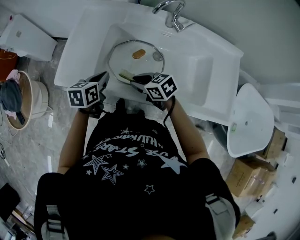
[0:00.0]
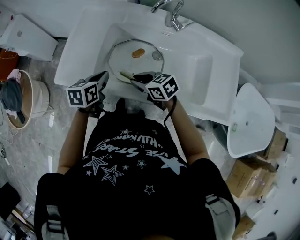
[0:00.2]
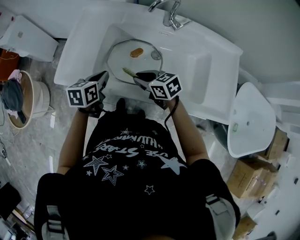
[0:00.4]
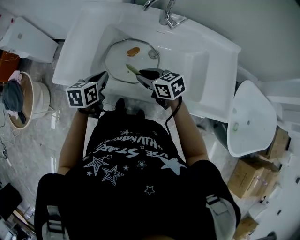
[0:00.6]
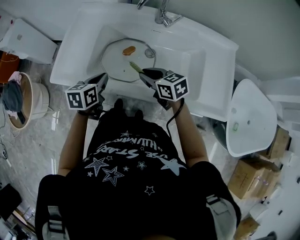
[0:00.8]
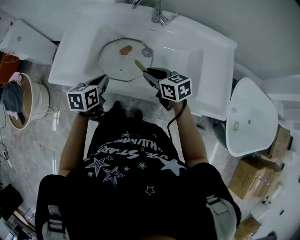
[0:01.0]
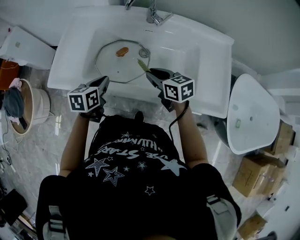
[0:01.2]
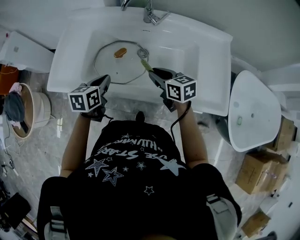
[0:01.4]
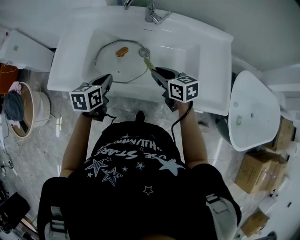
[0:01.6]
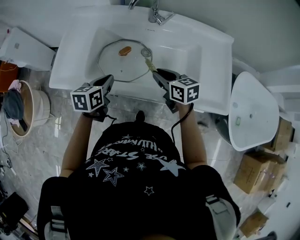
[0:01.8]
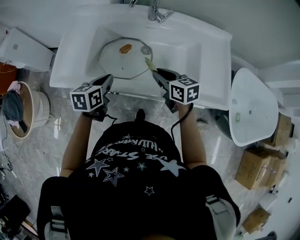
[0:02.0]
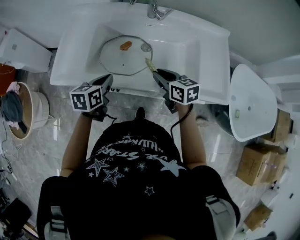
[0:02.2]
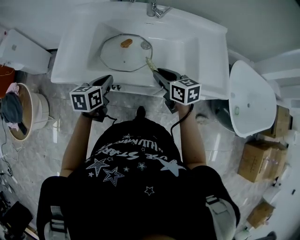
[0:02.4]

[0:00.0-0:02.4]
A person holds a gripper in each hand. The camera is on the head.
0.0 to 1.2 s: The right gripper goes approximately 15 cm to the right, and turns by approximately 20 degrees; the left gripper travels to the right and backward by approximately 10 cm.
1.2 to 2.4 s: Both grippers move backward, roughly 5 cm.

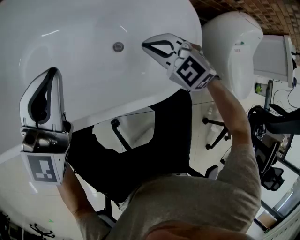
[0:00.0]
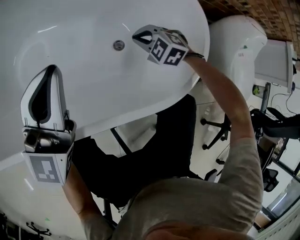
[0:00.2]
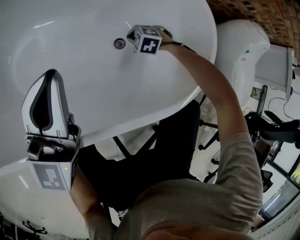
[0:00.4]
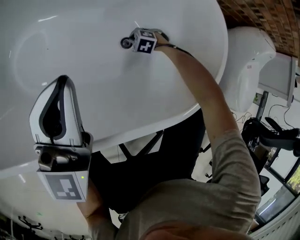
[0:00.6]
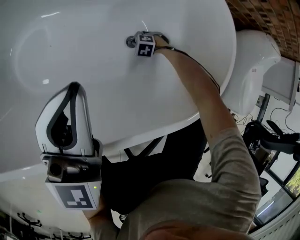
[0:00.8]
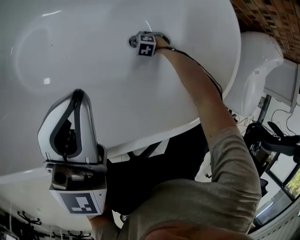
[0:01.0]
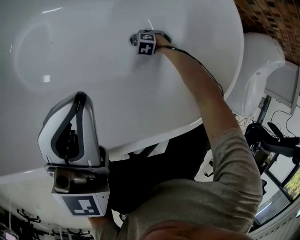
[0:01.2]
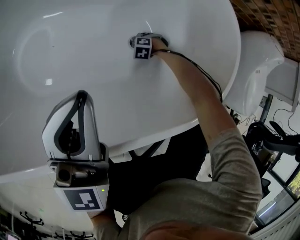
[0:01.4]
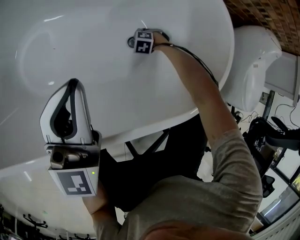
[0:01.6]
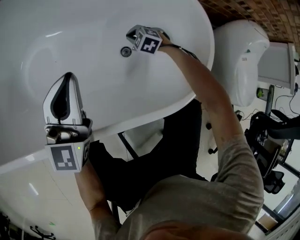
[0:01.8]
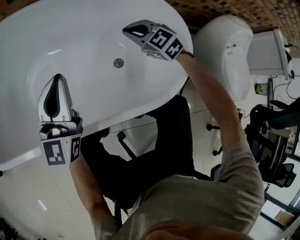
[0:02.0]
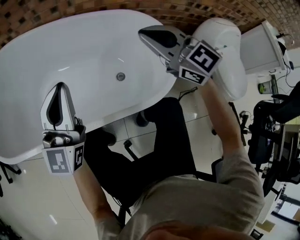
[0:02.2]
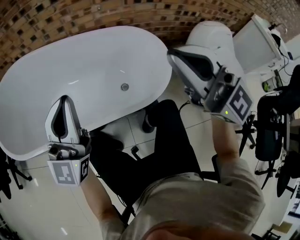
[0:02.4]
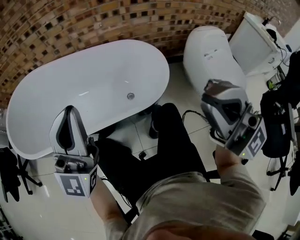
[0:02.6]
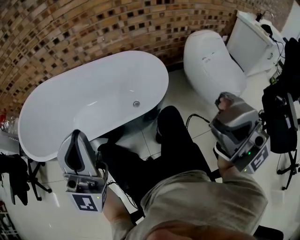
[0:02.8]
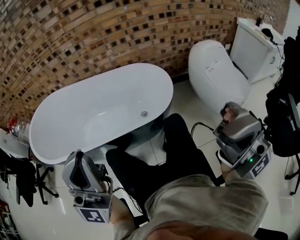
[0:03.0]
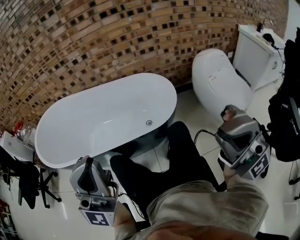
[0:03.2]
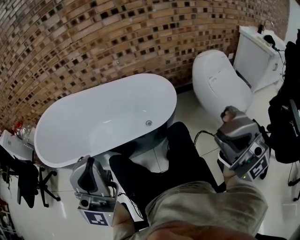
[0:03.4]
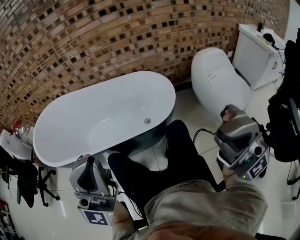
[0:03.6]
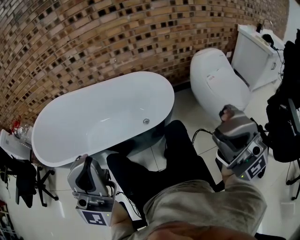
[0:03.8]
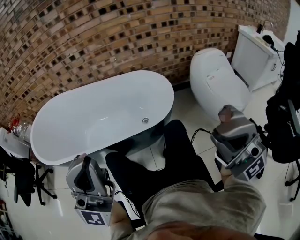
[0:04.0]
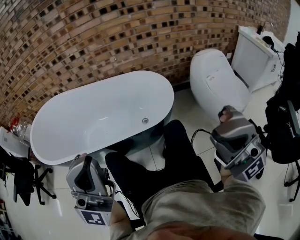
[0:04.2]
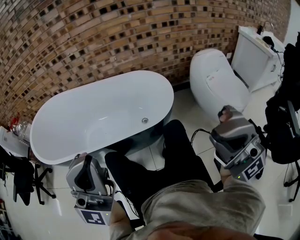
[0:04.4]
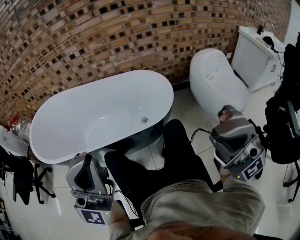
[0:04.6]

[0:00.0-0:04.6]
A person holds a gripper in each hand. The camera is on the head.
0.0 to 1.6 s: The left gripper heads downward, covering about 10 cm. The right gripper travels downward by about 40 cm, and angles its fingers downward, by some 40 degrees.
1.6 to 3.0 s: The pair of grippers is taken approximately 50 cm. The right gripper heads upward, covering roughly 90 cm, and angles its fingers upward, by roughly 120 degrees. Meanwhile the left gripper angles its fingers upward, by some 40 degrees.
3.0 to 4.6 s: There are only small adjustments of the grippers.

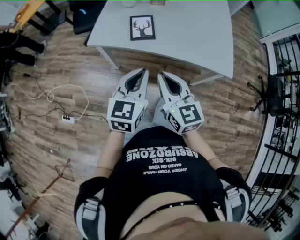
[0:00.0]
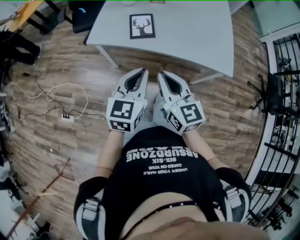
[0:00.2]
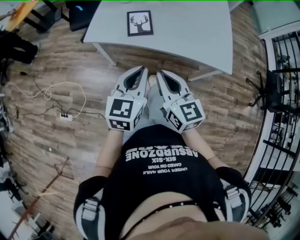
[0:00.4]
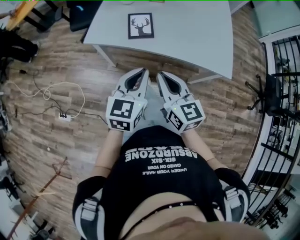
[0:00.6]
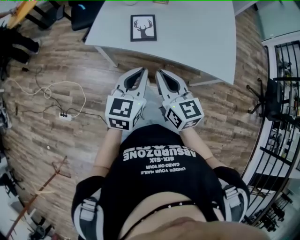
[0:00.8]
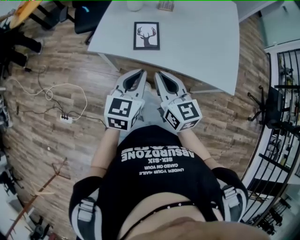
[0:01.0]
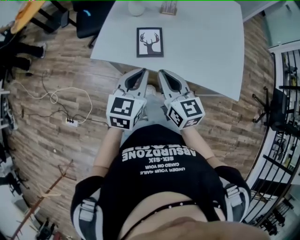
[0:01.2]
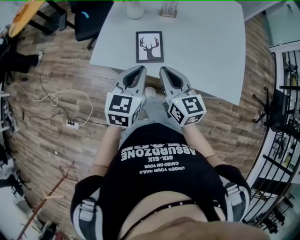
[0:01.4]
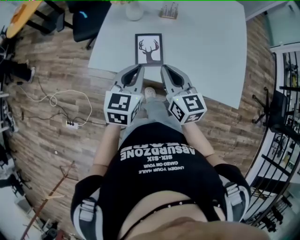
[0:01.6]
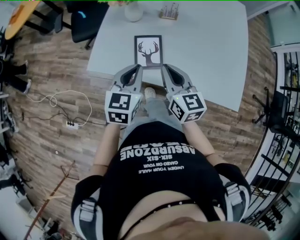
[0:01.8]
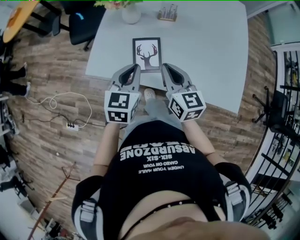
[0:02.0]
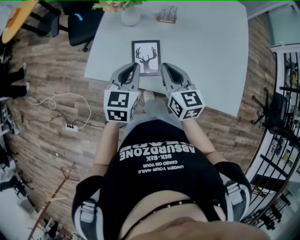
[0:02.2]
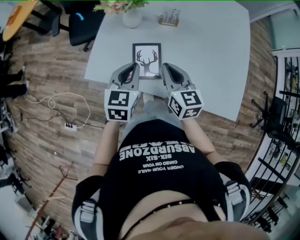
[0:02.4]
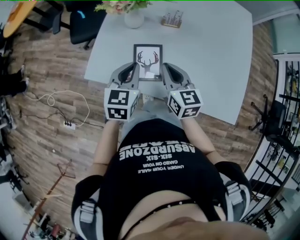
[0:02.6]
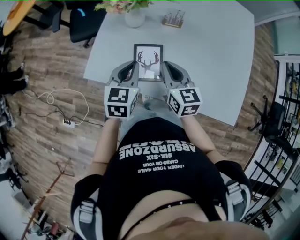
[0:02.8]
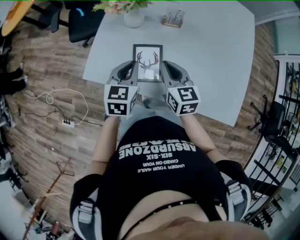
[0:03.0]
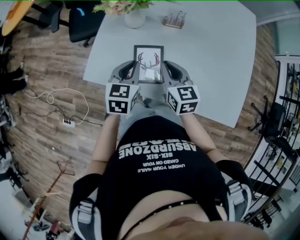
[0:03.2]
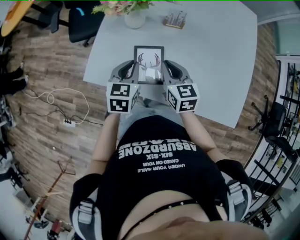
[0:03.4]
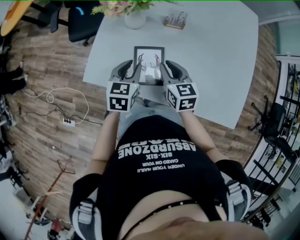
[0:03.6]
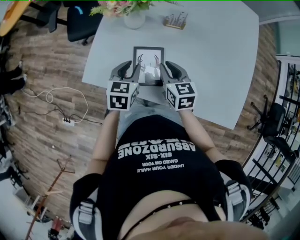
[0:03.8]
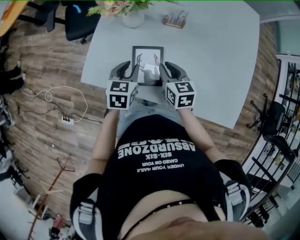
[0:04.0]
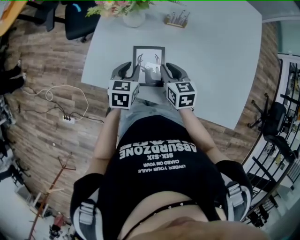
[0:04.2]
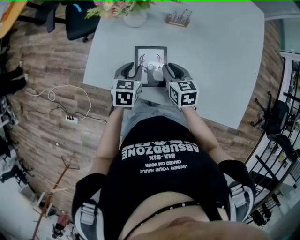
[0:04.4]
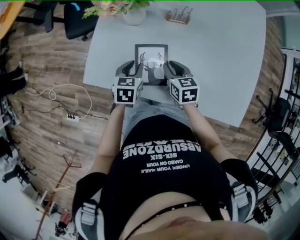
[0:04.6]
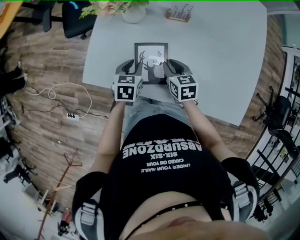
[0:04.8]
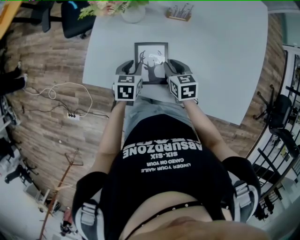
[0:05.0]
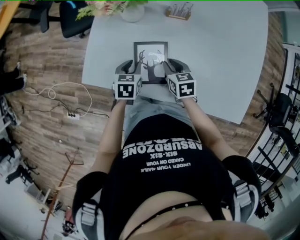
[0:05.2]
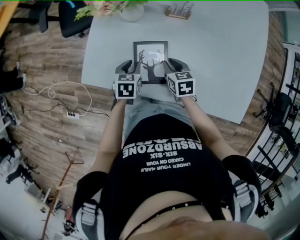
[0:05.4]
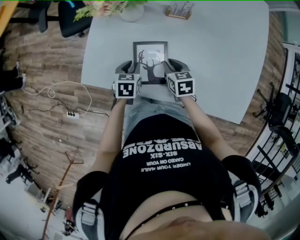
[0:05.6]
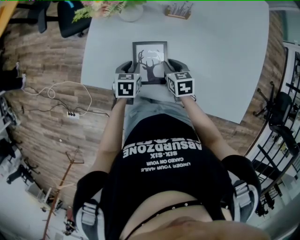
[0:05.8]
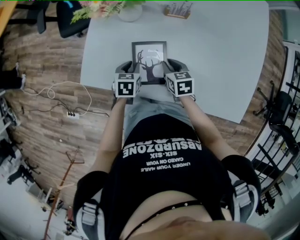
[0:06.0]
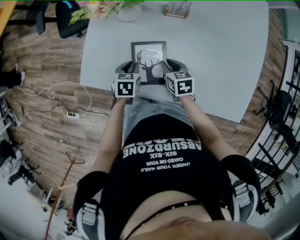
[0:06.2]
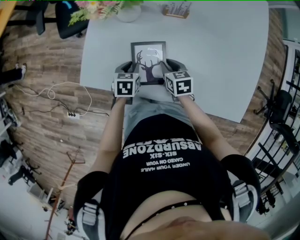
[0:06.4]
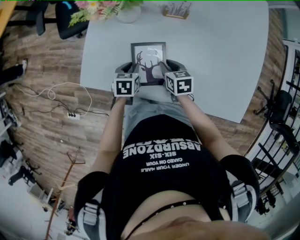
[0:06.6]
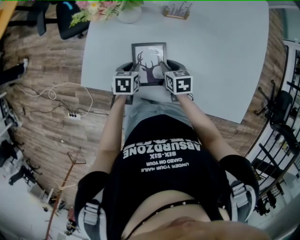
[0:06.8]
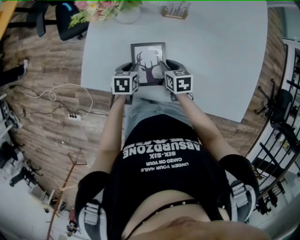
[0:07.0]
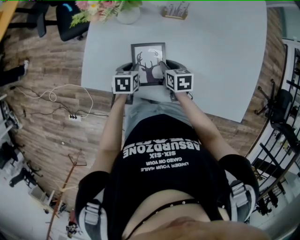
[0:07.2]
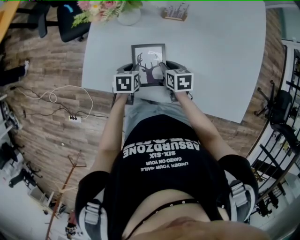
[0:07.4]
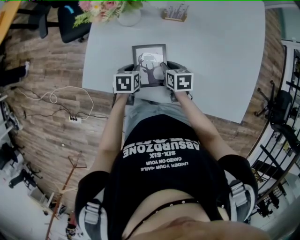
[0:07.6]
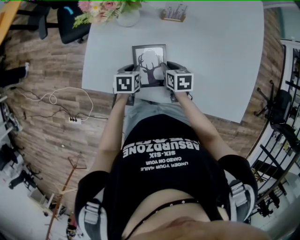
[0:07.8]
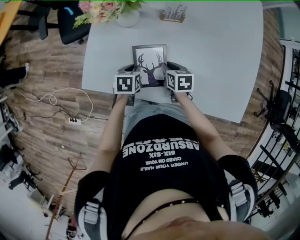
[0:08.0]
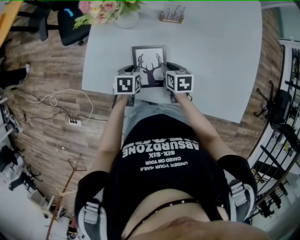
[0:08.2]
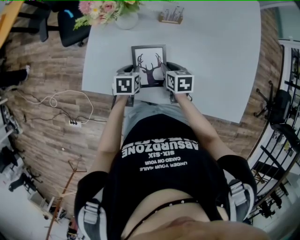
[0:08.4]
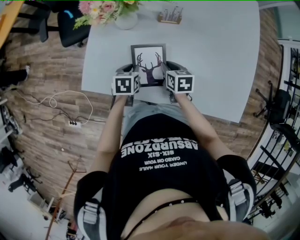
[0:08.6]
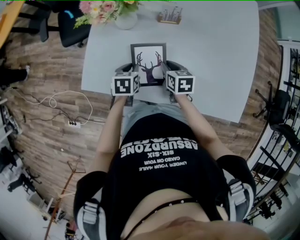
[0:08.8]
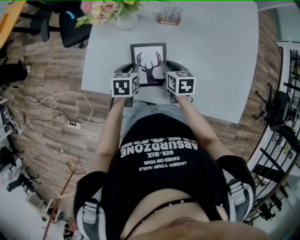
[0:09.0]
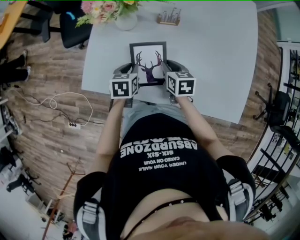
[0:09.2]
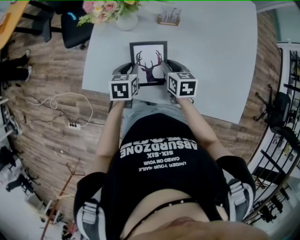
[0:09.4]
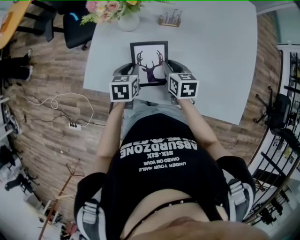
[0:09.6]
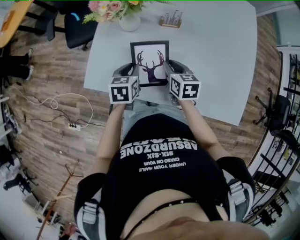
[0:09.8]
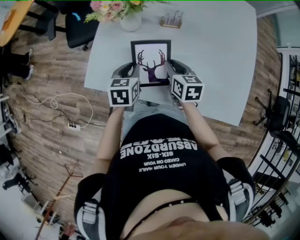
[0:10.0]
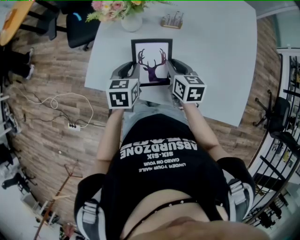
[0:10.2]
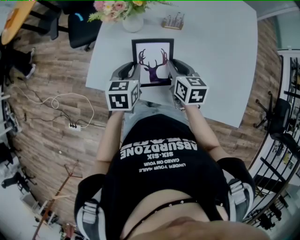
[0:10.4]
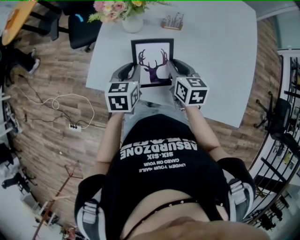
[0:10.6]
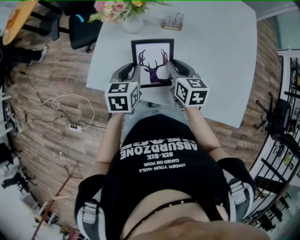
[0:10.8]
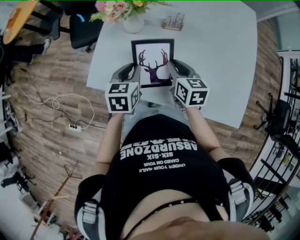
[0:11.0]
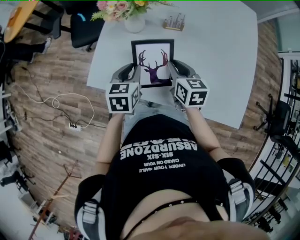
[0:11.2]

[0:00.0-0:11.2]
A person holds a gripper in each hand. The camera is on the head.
0.0 to 1.6 s: The grippers both shift forward by approximately 25 cm.
1.6 to 3.2 s: The grippers both shift forward and downward by roughly 15 cm.
3.2 to 4.8 s: The two grippers go approximately 15 cm downward. The right gripper turns by approximately 20 degrees. Meanwhile the left gripper opens its fingers.
4.8 to 6.4 s: The two grippers go approximately 5 cm downward.
6.4 to 8.0 s: The grippers move only a little.
8.0 to 9.6 s: The grippers both shift upward by approximately 10 cm.
9.6 to 11.2 s: The two grippers go approximately 10 cm upward.

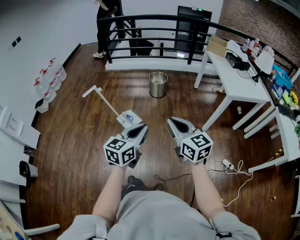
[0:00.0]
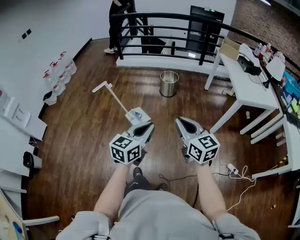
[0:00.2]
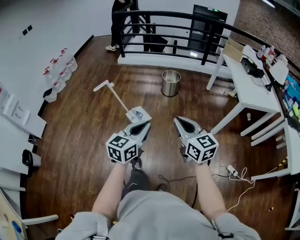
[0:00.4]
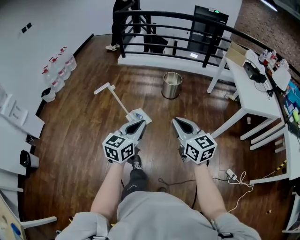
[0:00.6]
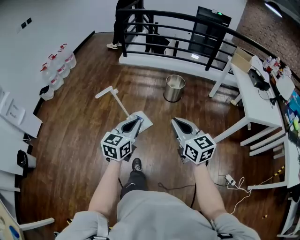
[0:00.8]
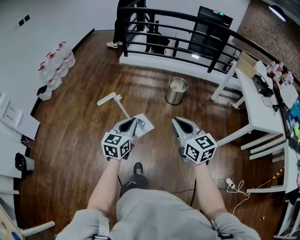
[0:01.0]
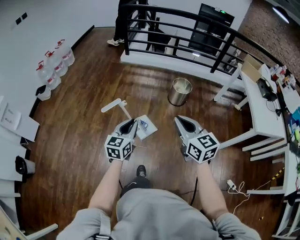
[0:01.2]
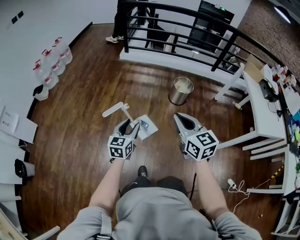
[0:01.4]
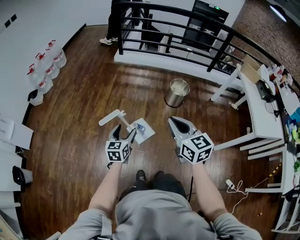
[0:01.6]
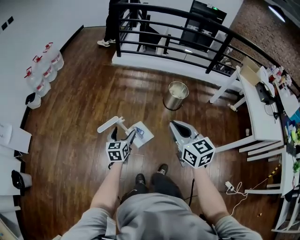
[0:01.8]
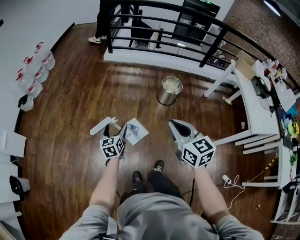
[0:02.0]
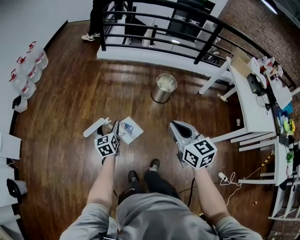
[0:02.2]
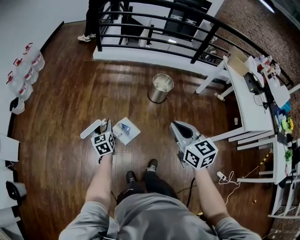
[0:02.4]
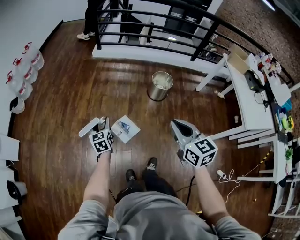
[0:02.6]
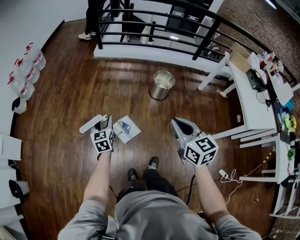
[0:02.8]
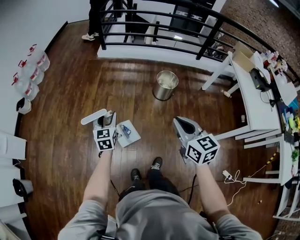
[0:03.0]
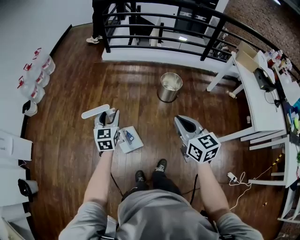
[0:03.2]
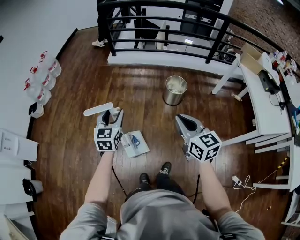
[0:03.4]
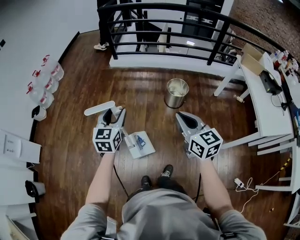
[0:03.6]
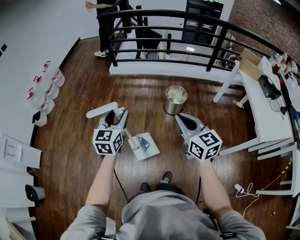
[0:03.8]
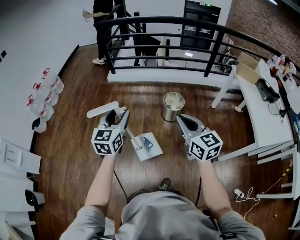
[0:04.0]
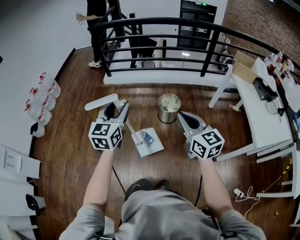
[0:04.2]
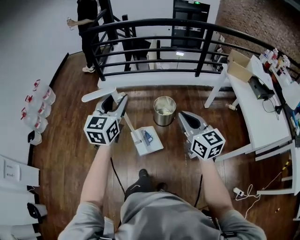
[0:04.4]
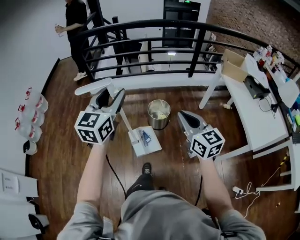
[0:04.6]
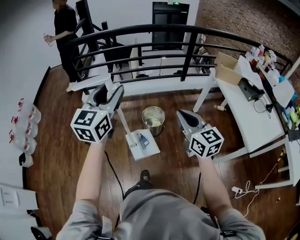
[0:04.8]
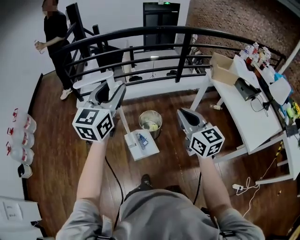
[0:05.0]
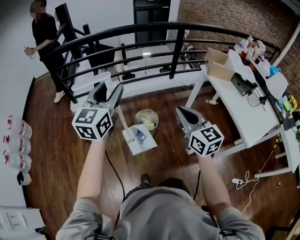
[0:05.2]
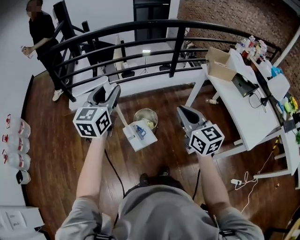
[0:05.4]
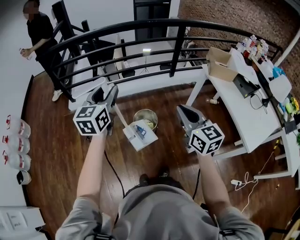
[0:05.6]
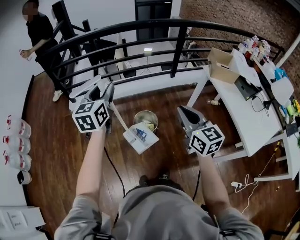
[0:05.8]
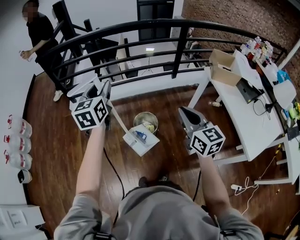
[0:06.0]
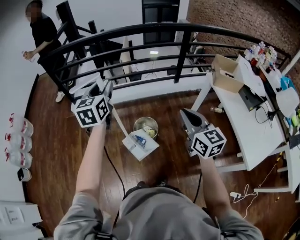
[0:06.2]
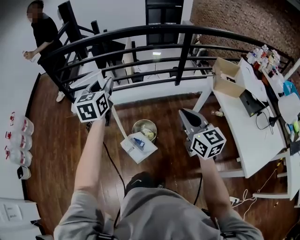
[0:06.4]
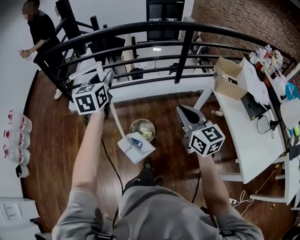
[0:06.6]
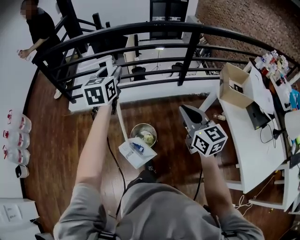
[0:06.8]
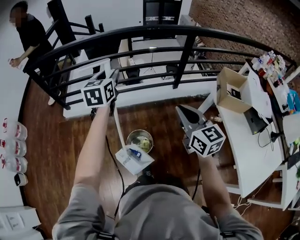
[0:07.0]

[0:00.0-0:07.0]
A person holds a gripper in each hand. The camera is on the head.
0.0 to 1.4 s: The right gripper moves forward and to the left, approximately 40 cm. Meanwhile the left gripper is displaced forward, to the left and downward by some 50 cm, and opens its fingers.
1.4 to 2.8 s: The right gripper goes approximately 10 cm to the right and forward. Meanwhile the left gripper shifts some 15 cm forward and downward, and opens, then closes once more.
2.8 to 4.2 s: The left gripper heads upward and to the right, covering some 35 cm, and rotates some 30 degrees. Meanwhile the right gripper is displaced to the right, forward and upward by approximately 20 cm.
4.2 to 5.6 s: The right gripper is displaced forward and to the right by roughly 25 cm; the left gripper heads forward, covering about 35 cm.
5.6 to 7.0 s: The right gripper travels forward and to the right by approximately 30 cm. The left gripper heads forward, covering roughly 30 cm.
